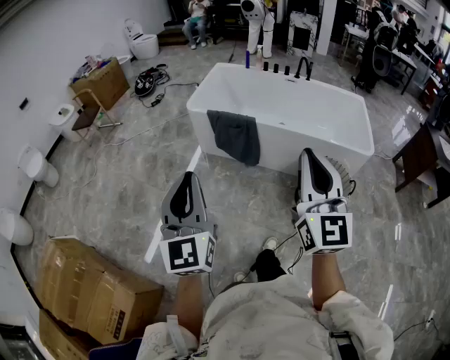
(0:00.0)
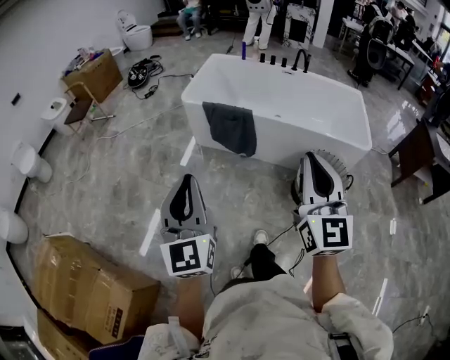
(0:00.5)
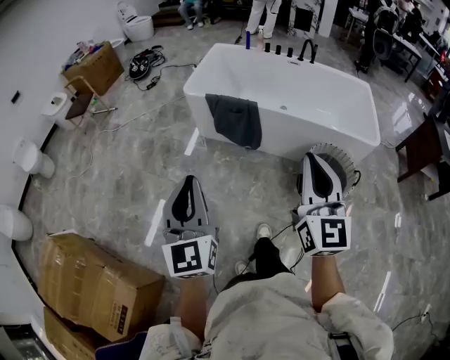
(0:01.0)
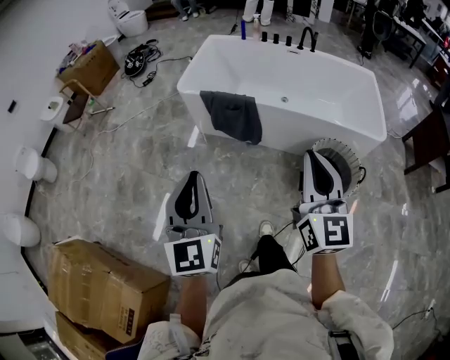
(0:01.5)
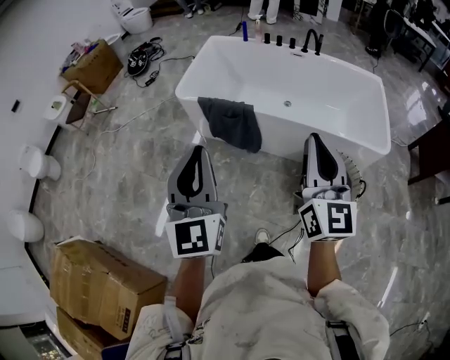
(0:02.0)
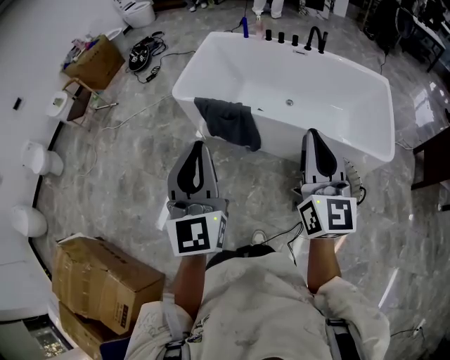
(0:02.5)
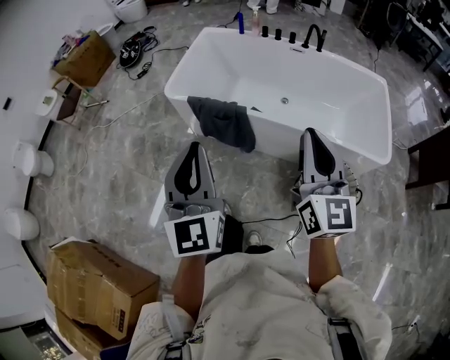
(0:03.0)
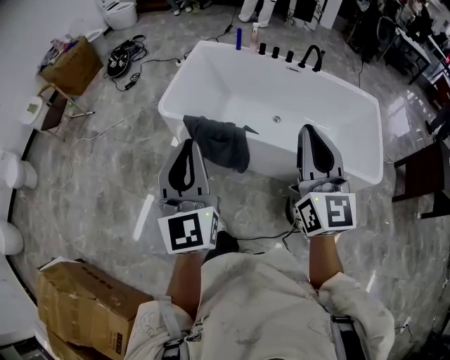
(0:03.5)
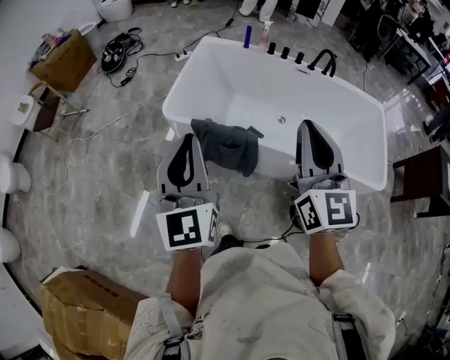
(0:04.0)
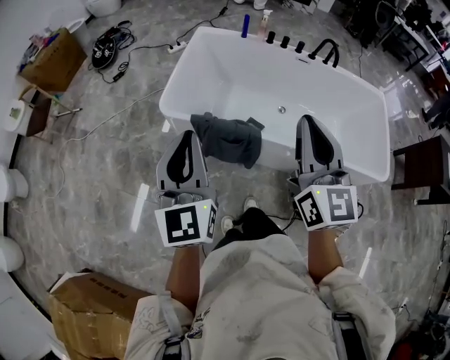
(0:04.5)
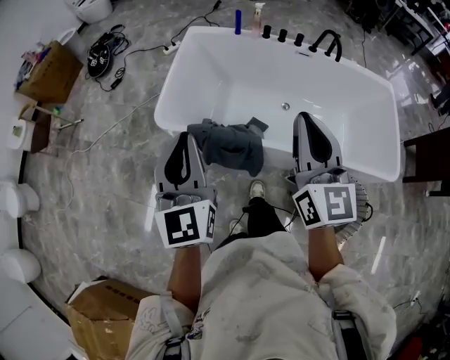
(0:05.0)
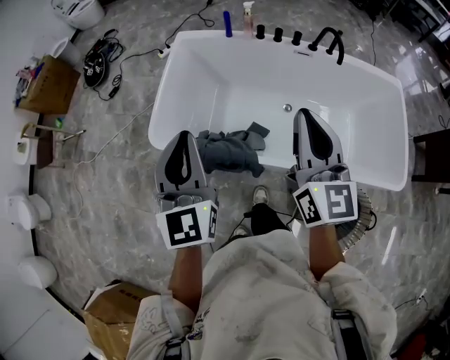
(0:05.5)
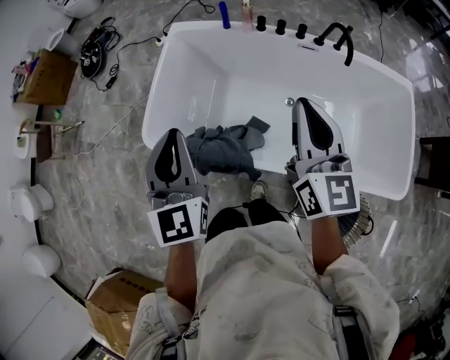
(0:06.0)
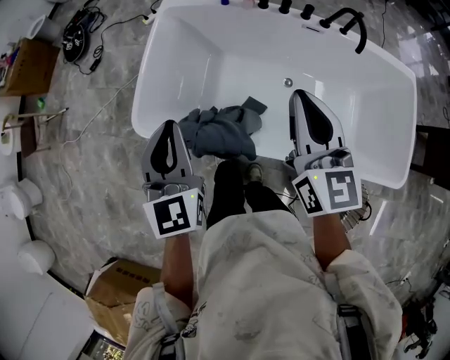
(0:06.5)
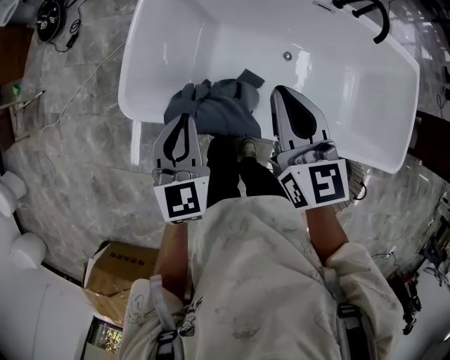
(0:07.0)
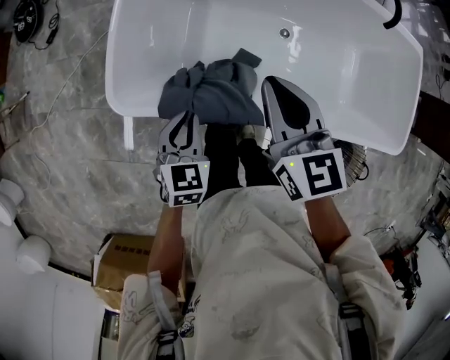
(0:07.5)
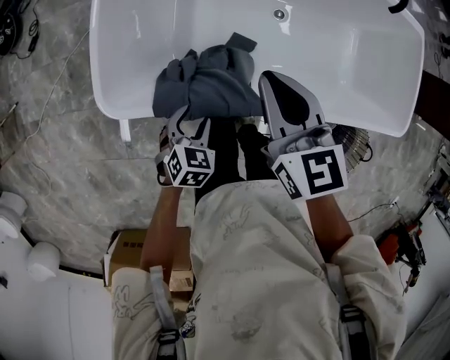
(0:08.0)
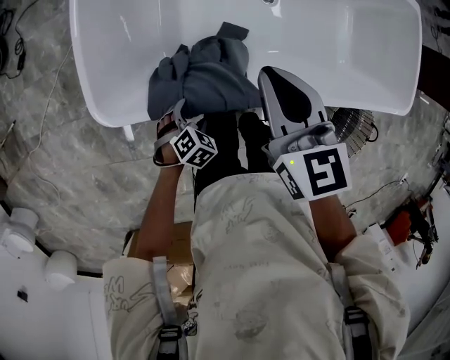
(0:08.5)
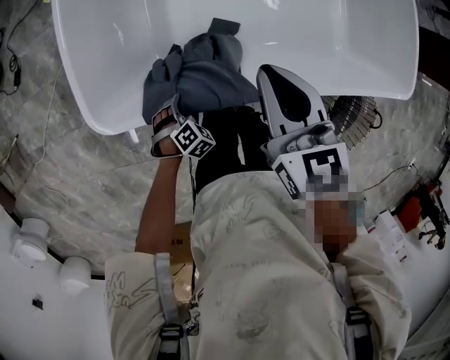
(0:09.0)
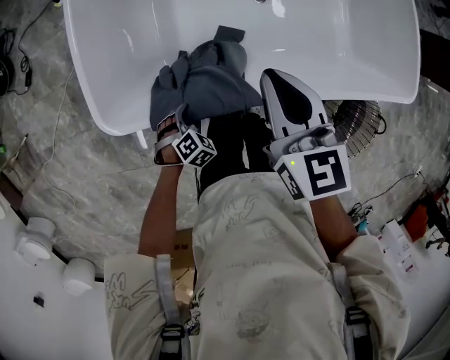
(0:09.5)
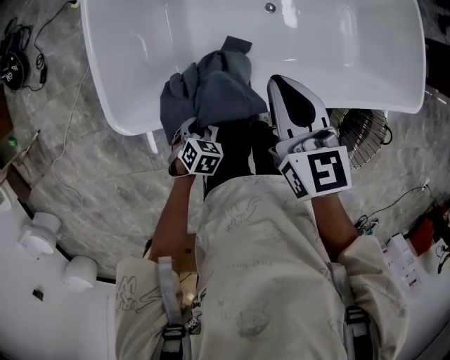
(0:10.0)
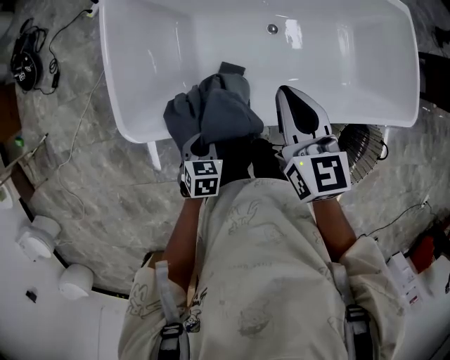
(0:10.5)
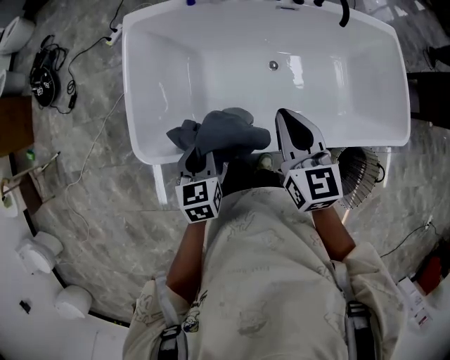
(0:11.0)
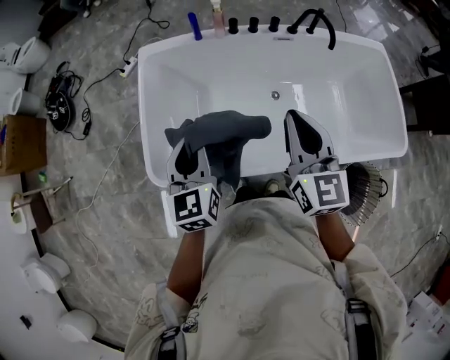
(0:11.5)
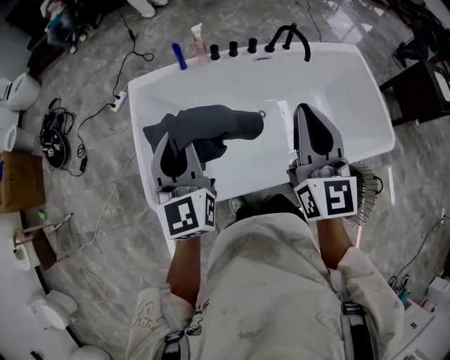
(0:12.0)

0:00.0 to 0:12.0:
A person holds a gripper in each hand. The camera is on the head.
0:00.0 to 0:02.0: Both grippers move forward and to the right, roughly 25 cm.
0:02.0 to 0:04.0: Both grippers move forward and to the left, some 35 cm.
0:04.0 to 0:06.0: Both grippers travel together forward and to the right, some 40 cm.
0:06.0 to 0:08.0: The left gripper heads downward, covering some 40 cm, tilts its fingers roughly 50 degrees downward, and opens up; the right gripper shifts roughly 30 cm downward and to the left, and changes its angle by some 30 degrees.
0:08.0 to 0:10.0: The left gripper moves downward, approximately 5 cm, and closes. The right gripper moves about 10 cm.
0:10.0 to 0:12.0: The left gripper travels upward by about 50 cm, and angles its fingers upward, by some 70 degrees. The right gripper moves upward, approximately 25 cm, and tips its fingers upward by approximately 30 degrees.

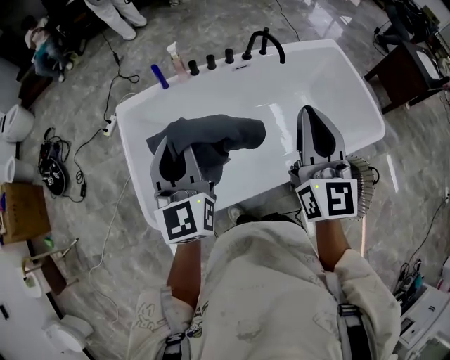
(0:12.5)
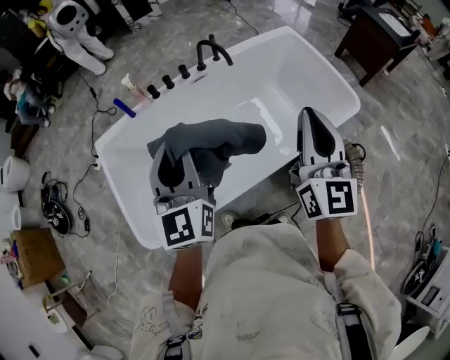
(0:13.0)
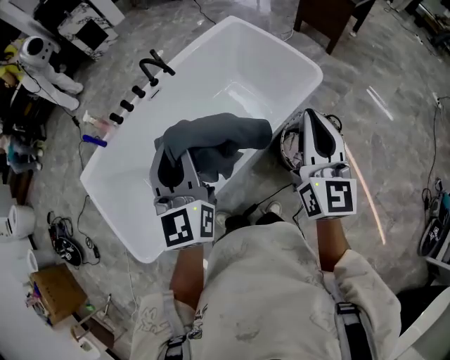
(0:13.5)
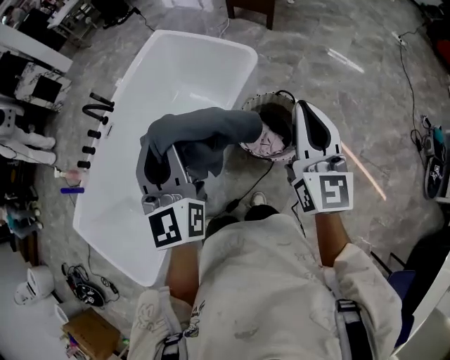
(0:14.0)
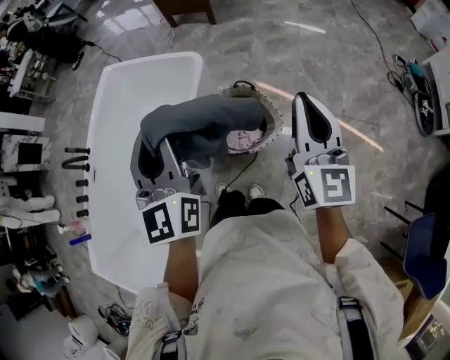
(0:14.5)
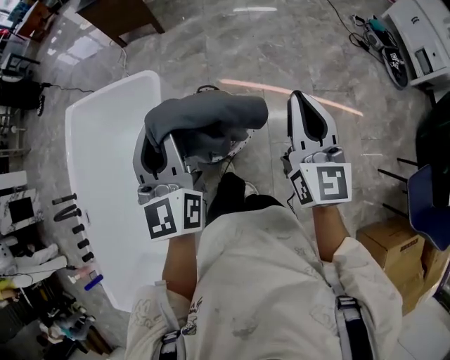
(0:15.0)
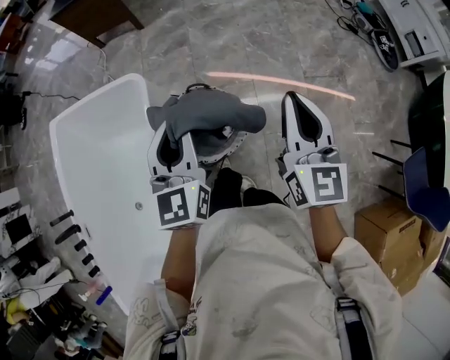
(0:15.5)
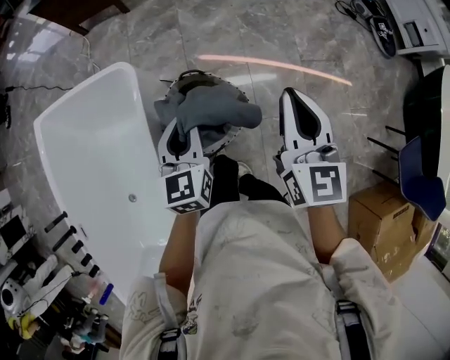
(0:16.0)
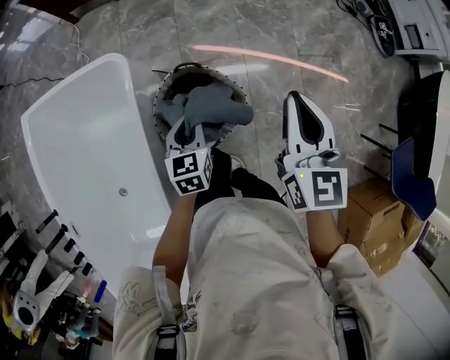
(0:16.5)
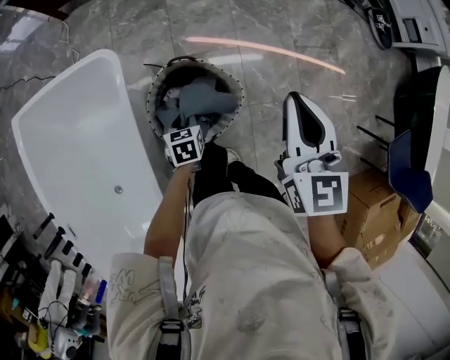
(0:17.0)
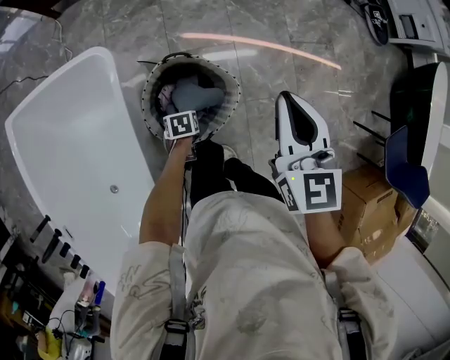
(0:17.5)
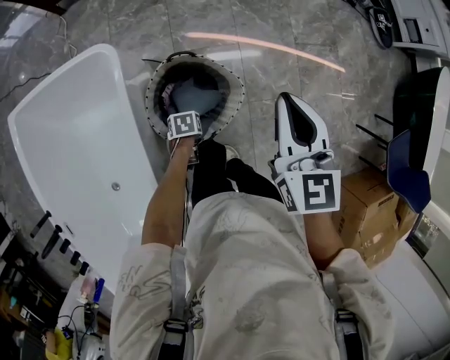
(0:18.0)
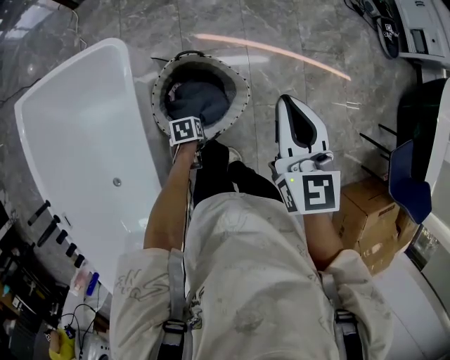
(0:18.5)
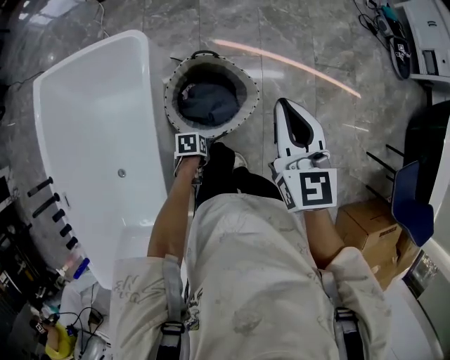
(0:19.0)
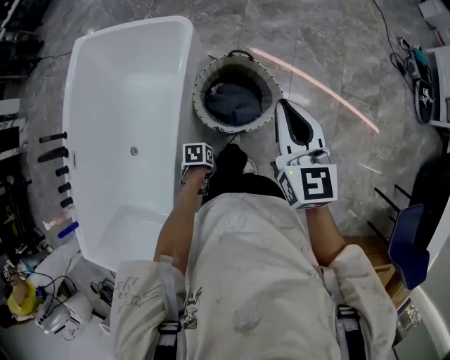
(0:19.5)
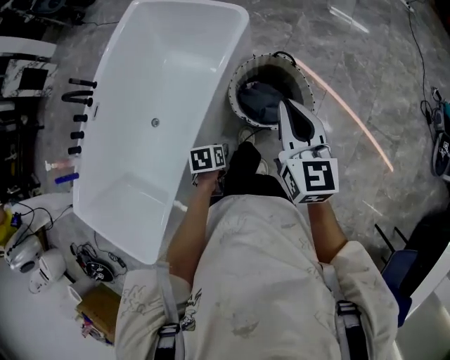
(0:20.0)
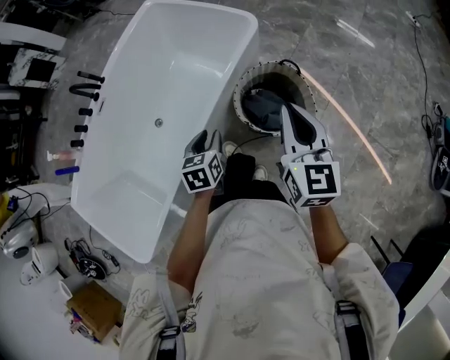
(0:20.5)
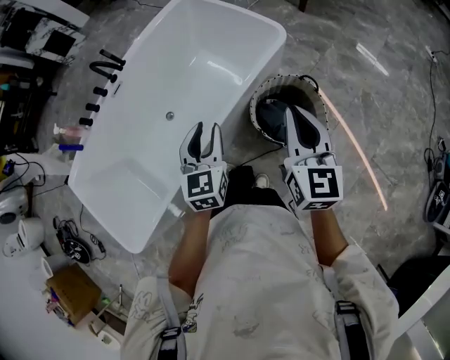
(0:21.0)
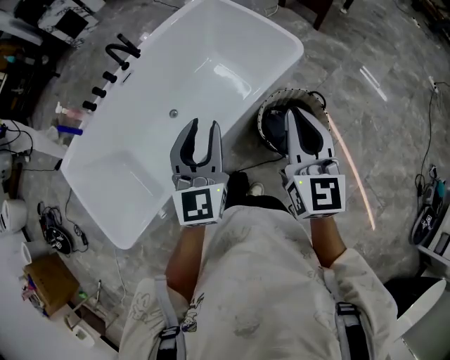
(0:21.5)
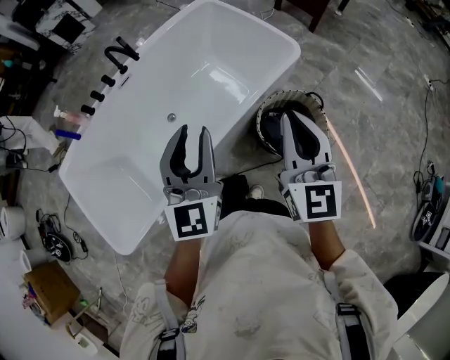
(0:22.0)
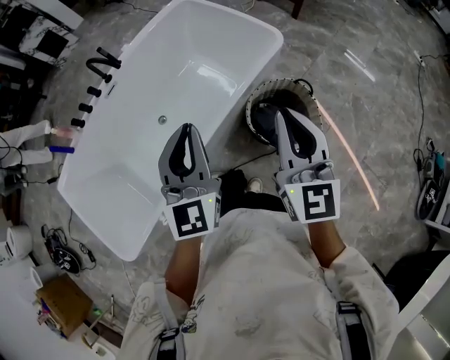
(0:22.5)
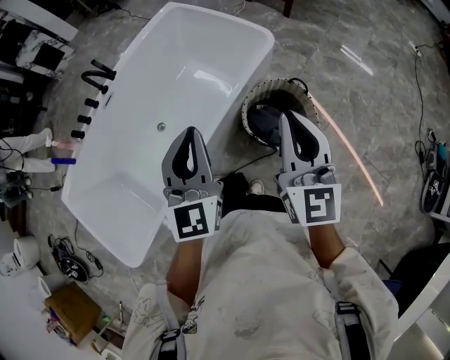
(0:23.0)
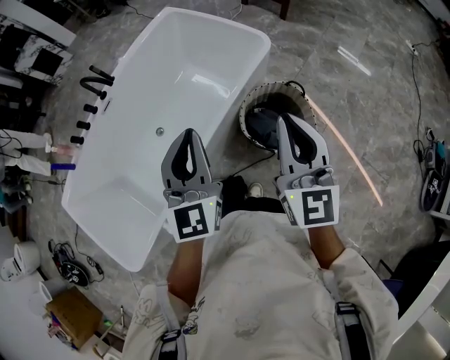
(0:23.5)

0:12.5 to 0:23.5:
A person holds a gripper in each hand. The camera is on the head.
0:12.5 to 0:14.5: The pair of grippers is taken about 70 cm. The right gripper changes its angle by roughly 60 degrees. The left gripper swivels roughly 60 degrees.
0:14.5 to 0:16.0: The left gripper shifts about 30 cm downward and forward, and swivels some 40 degrees, while the right gripper goes some 15 cm forward and downward, and rotates about 30 degrees.
0:16.0 to 0:18.0: The left gripper is displaced downward by roughly 35 cm, tips its fingers downward by about 50 degrees, and opens its fingers. Meanwhile the right gripper shifts some 5 cm downward.
0:18.0 to 0:20.0: The right gripper ends up roughly 20 cm from where it was, and changes its angle by approximately 40 degrees; the left gripper ends up roughly 30 cm from where it was, and rotates approximately 40 degrees.
0:20.0 to 0:21.5: The right gripper ends up about 15 cm from where it was, and rotates about 20 degrees. The left gripper travels upward by roughly 35 cm, and tilts its fingers approximately 60 degrees upward.
0:21.5 to 0:23.5: The right gripper moves some 5 cm, while the left gripper closes.

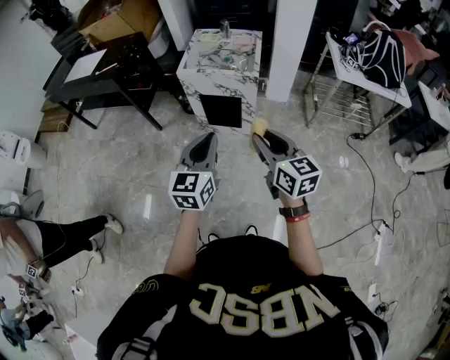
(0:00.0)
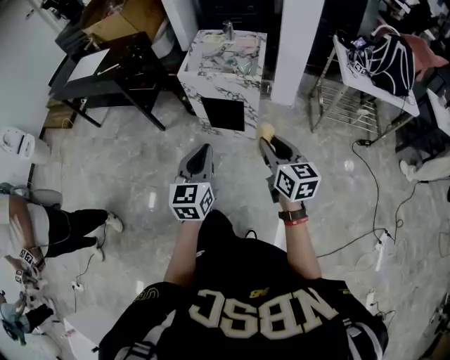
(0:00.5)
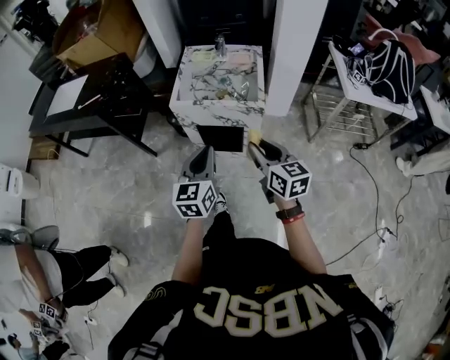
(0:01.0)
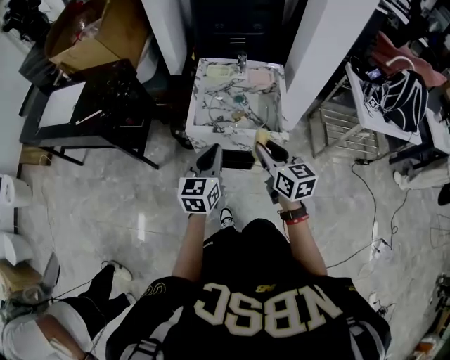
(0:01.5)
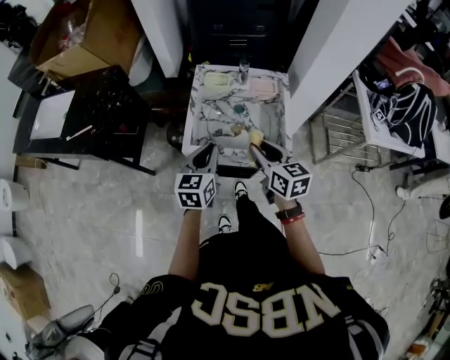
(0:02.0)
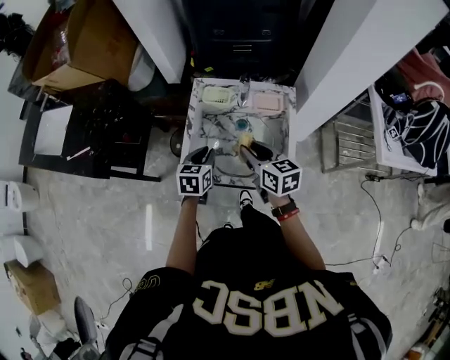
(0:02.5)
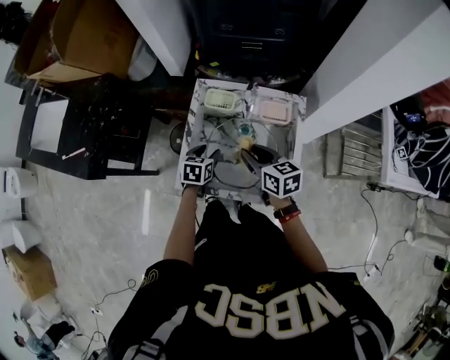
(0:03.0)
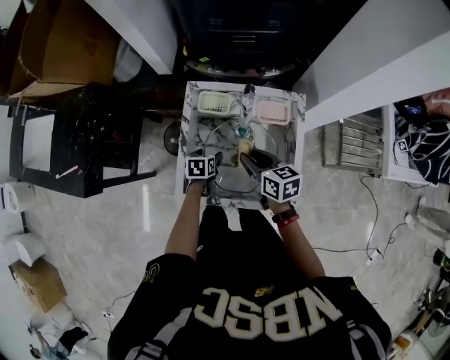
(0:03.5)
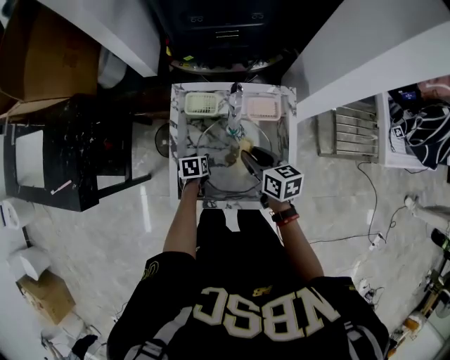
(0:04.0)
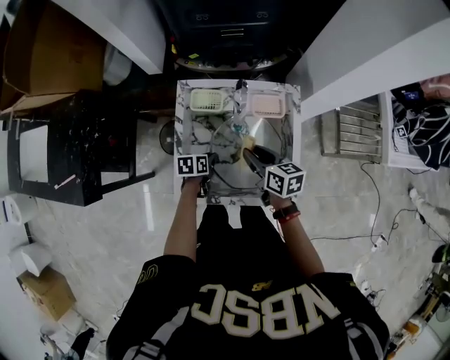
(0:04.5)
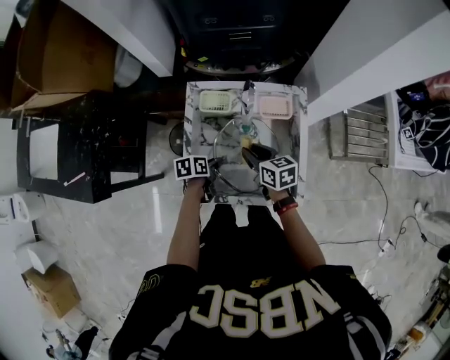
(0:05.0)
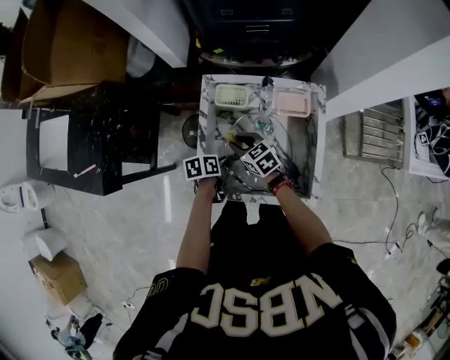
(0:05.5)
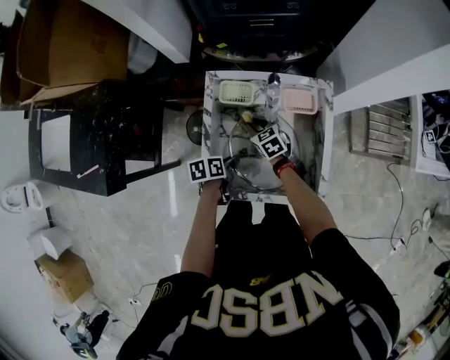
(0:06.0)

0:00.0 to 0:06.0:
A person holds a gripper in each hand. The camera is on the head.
0:00.0 to 0:02.0: The right gripper shifts by some 50 cm.
0:02.0 to 0:04.0: The right gripper shifts by roughly 25 cm.
0:04.0 to 0:06.0: The right gripper travels downward by roughly 15 cm, and swivels about 30 degrees.
